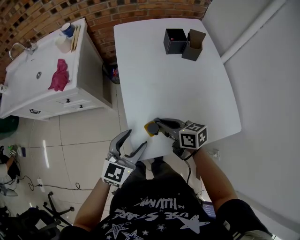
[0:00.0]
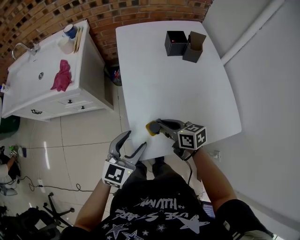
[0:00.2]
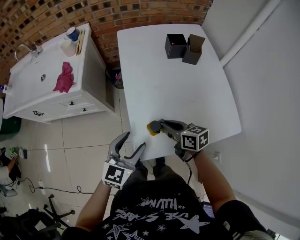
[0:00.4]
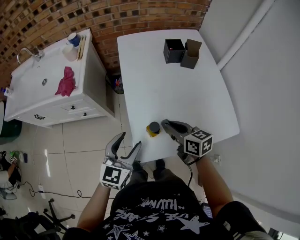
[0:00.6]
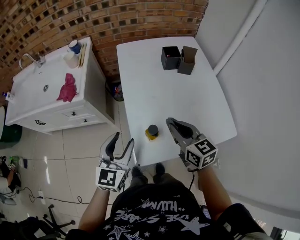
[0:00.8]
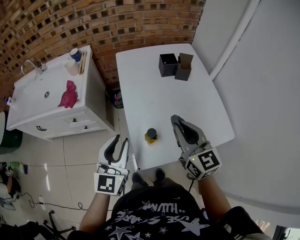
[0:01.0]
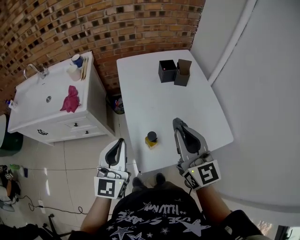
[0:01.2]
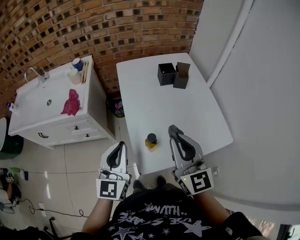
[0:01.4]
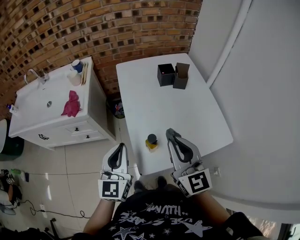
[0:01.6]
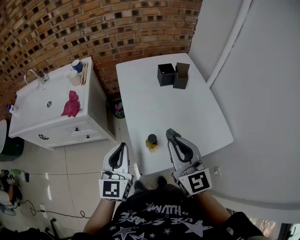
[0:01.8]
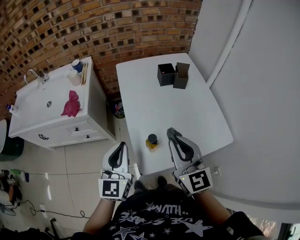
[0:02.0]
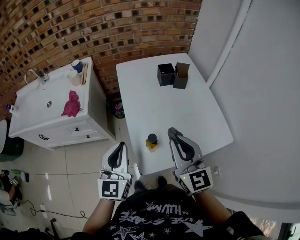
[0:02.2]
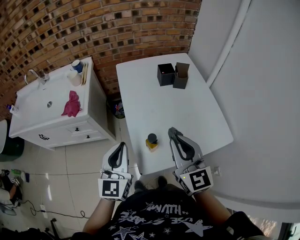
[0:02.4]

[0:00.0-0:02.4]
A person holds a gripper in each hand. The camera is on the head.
0:00.0 to 0:01.2: The left gripper goes about 15 cm upward, swivels approximately 30 degrees, and closes its fingers; the right gripper heads upward, covering about 25 cm, and rotates roughly 60 degrees.
0:01.2 to 0:02.4: There are only small adjustments of the grippers.

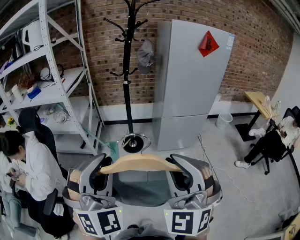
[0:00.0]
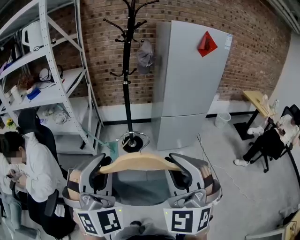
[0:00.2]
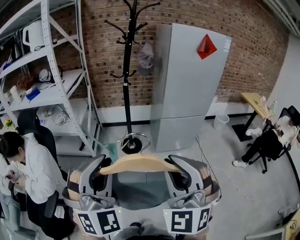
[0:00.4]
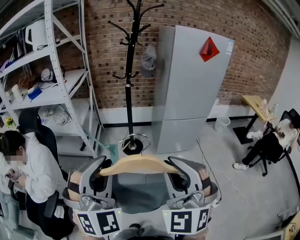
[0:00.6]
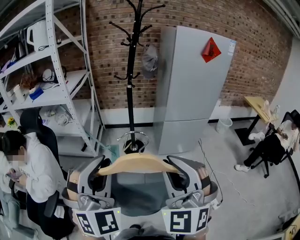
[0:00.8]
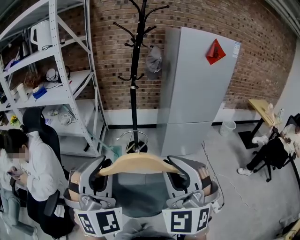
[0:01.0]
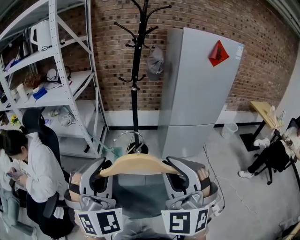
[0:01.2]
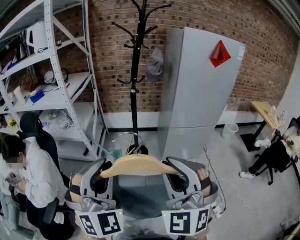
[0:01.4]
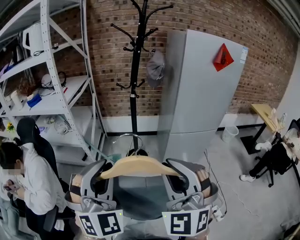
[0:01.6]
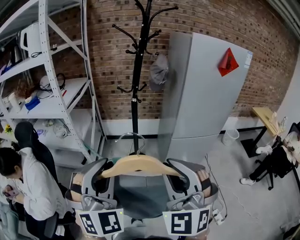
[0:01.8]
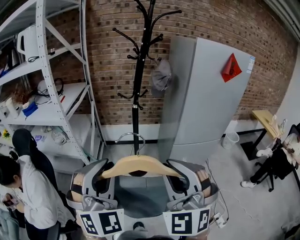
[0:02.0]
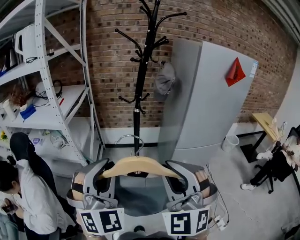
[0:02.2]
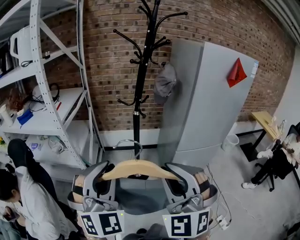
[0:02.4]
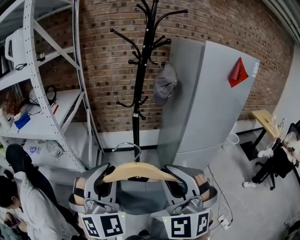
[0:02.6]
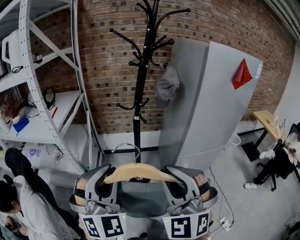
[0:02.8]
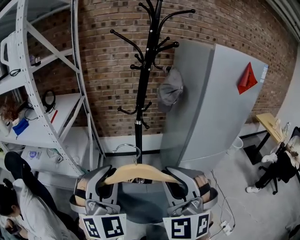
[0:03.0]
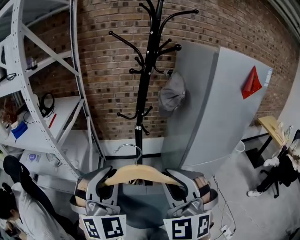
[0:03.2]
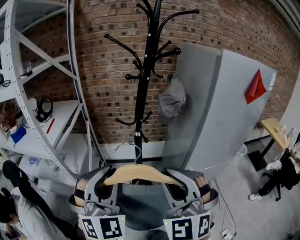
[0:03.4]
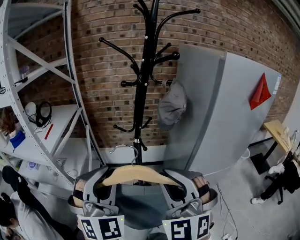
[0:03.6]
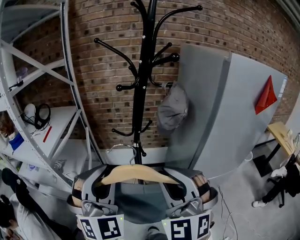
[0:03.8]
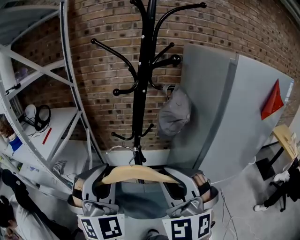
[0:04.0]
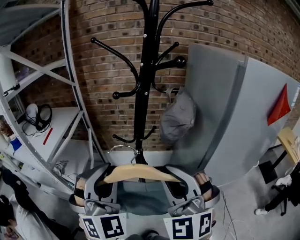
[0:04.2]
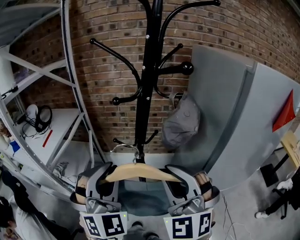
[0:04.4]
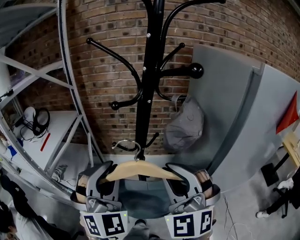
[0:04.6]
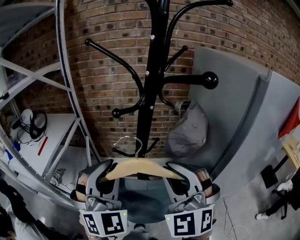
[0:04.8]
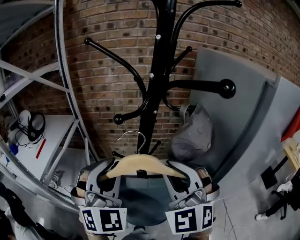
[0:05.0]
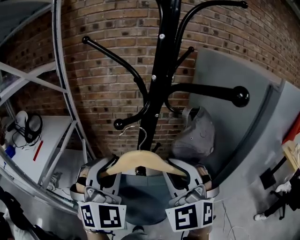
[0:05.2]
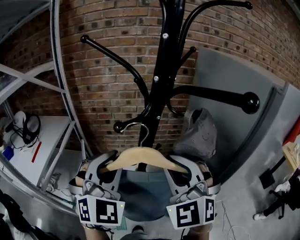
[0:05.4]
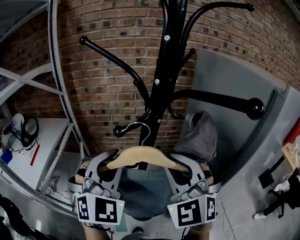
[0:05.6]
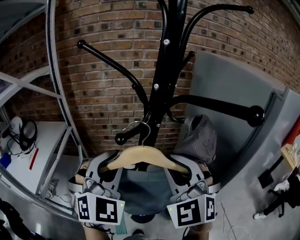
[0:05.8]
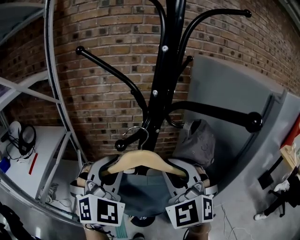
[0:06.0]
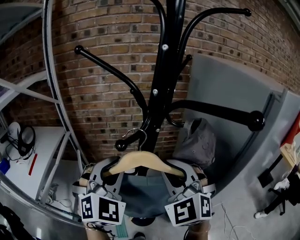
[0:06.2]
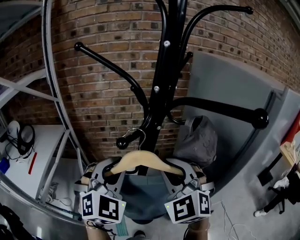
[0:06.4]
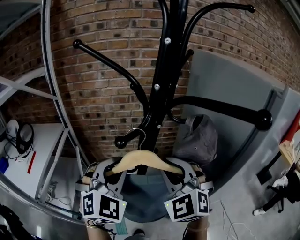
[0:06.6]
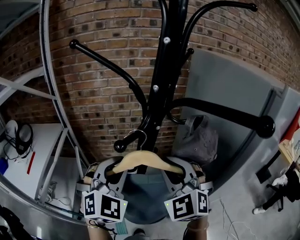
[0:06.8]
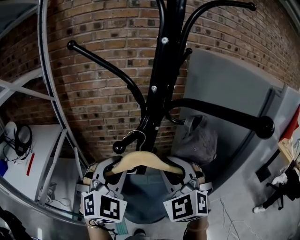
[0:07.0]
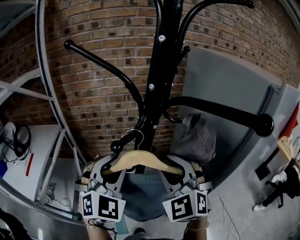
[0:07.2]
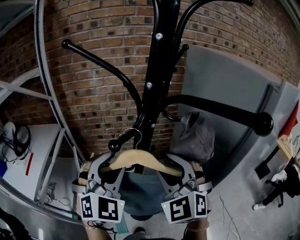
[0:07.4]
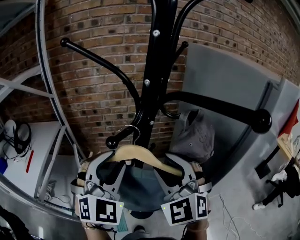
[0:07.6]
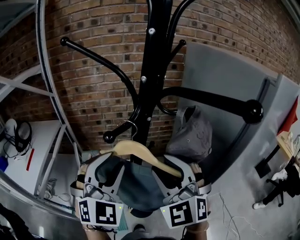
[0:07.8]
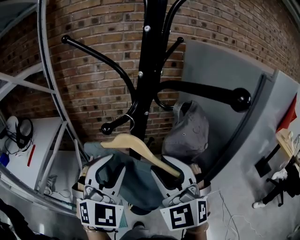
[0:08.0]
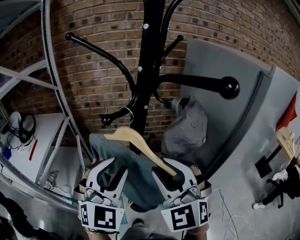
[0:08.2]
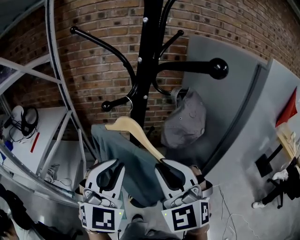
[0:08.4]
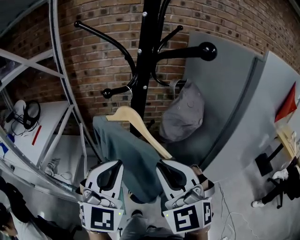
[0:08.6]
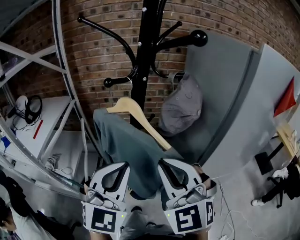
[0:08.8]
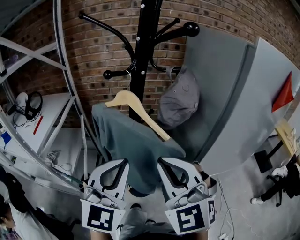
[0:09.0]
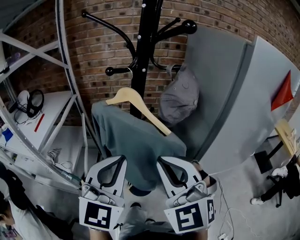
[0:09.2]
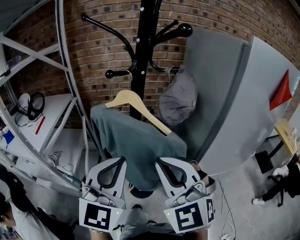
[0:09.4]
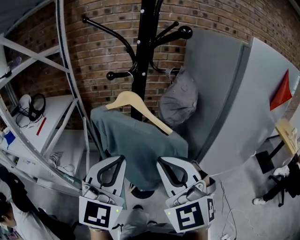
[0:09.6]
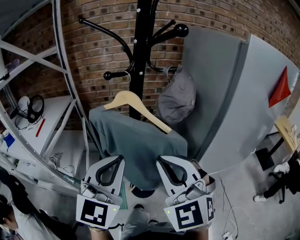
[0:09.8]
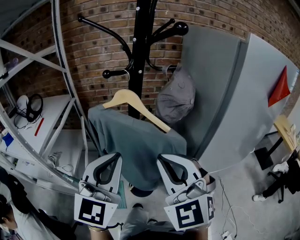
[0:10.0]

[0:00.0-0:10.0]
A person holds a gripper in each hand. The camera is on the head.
0:00.0 to 0:01.4: The two grippers go approximately 5 cm forward.
0:01.4 to 0:02.8: The grippers both shift forward by roughly 25 cm.
0:02.8 to 0:04.2: The grippers both shift forward by some 25 cm.
0:04.2 to 0:05.8: The grippers both shift forward by roughly 20 cm.
0:05.8 to 0:07.2: The grippers stay close to where they were, moving slightly.
0:07.2 to 0:08.6: Both grippers travel together backward, approximately 15 cm. The left gripper closes up.
0:08.6 to 0:10.0: The left gripper swivels some 20 degrees; the right gripper moves backward, about 5 cm.

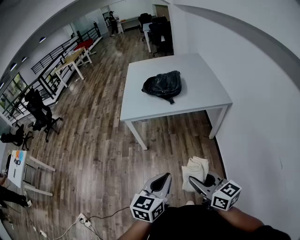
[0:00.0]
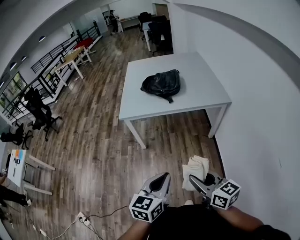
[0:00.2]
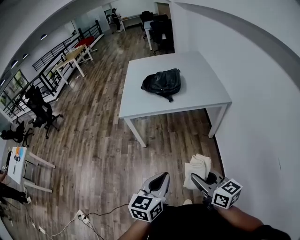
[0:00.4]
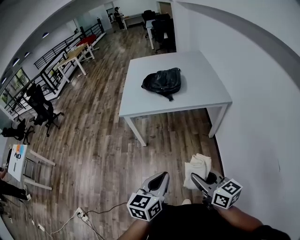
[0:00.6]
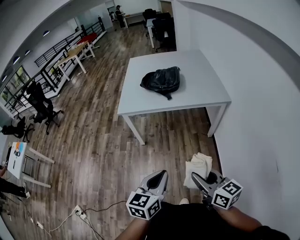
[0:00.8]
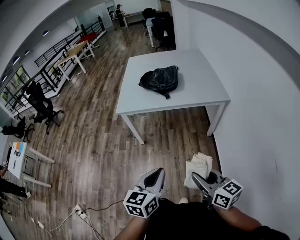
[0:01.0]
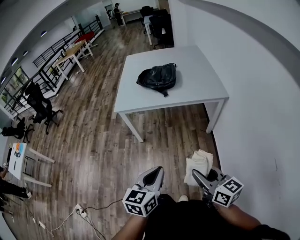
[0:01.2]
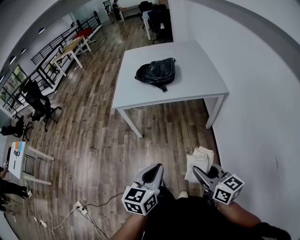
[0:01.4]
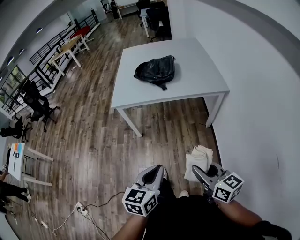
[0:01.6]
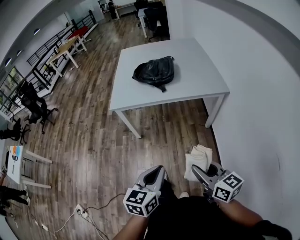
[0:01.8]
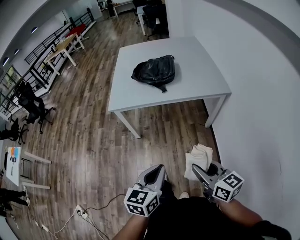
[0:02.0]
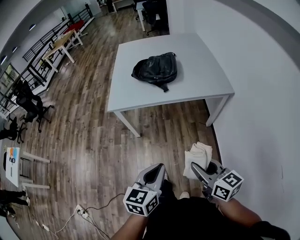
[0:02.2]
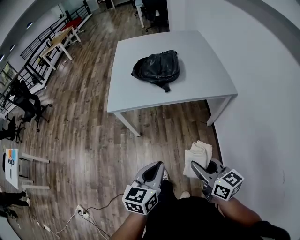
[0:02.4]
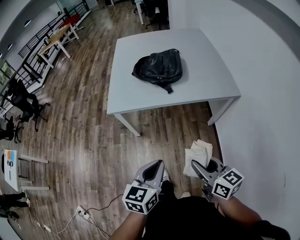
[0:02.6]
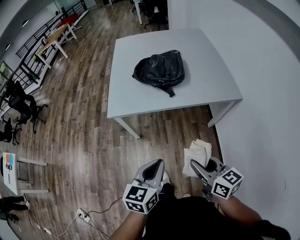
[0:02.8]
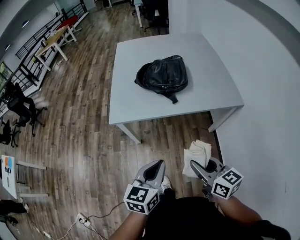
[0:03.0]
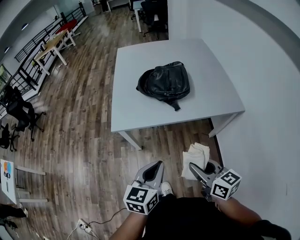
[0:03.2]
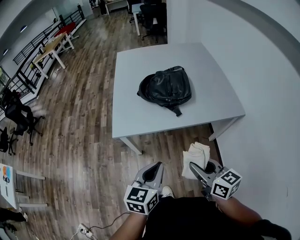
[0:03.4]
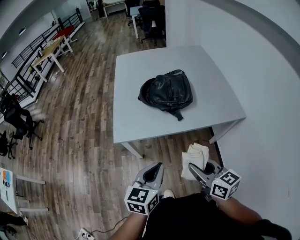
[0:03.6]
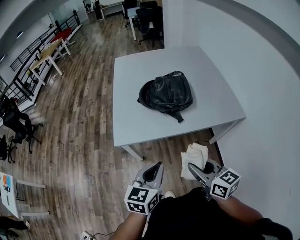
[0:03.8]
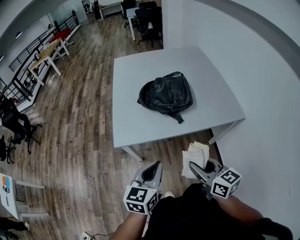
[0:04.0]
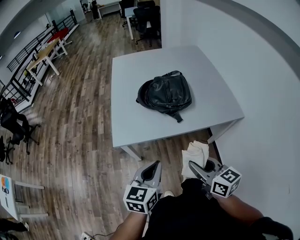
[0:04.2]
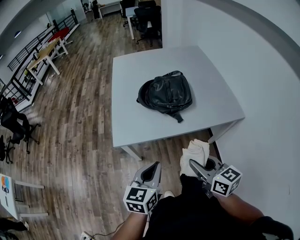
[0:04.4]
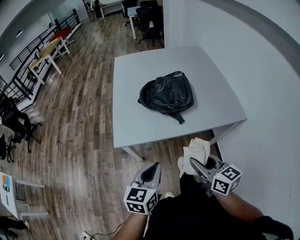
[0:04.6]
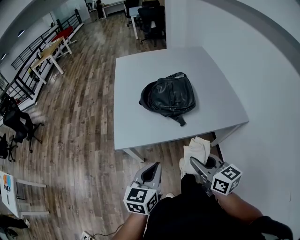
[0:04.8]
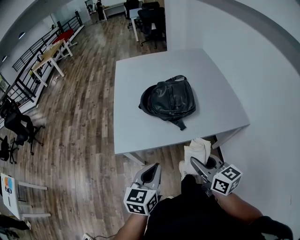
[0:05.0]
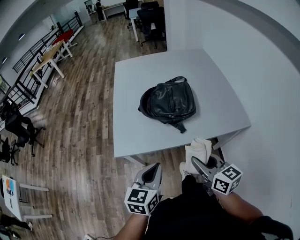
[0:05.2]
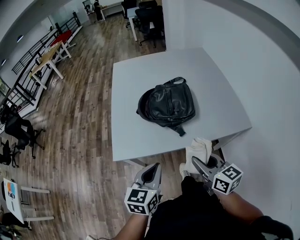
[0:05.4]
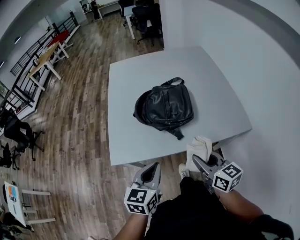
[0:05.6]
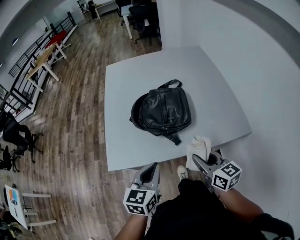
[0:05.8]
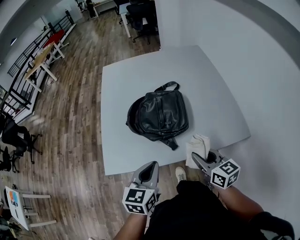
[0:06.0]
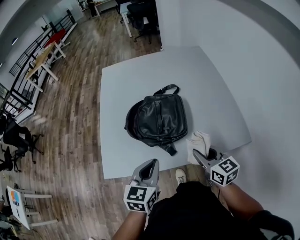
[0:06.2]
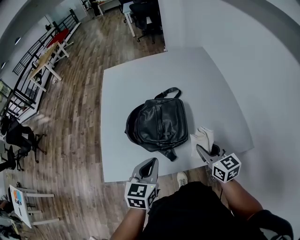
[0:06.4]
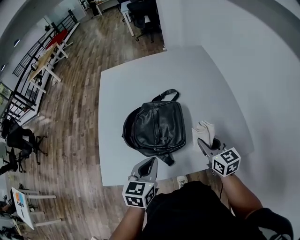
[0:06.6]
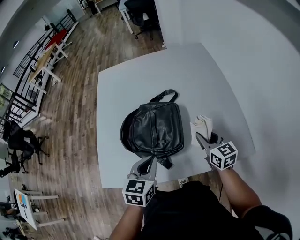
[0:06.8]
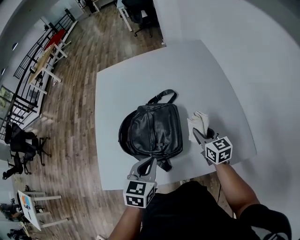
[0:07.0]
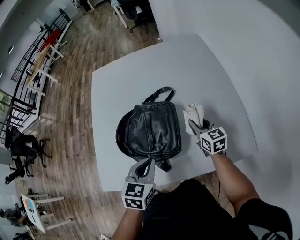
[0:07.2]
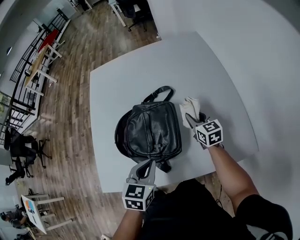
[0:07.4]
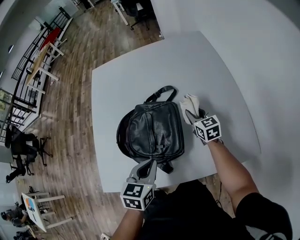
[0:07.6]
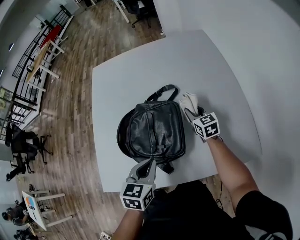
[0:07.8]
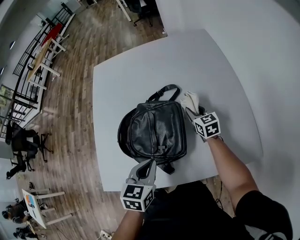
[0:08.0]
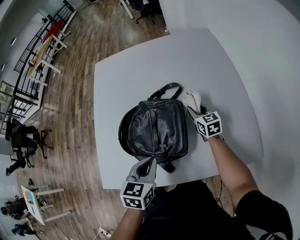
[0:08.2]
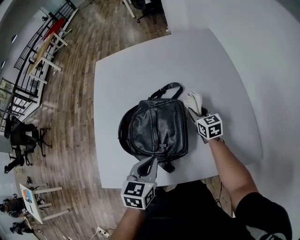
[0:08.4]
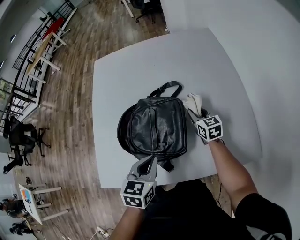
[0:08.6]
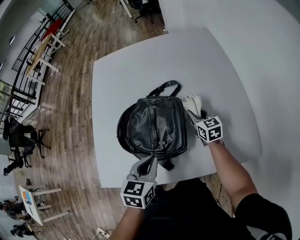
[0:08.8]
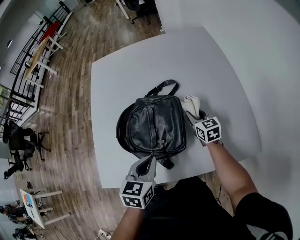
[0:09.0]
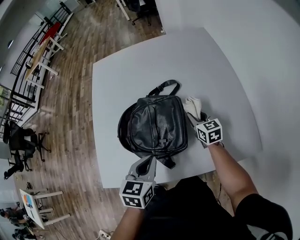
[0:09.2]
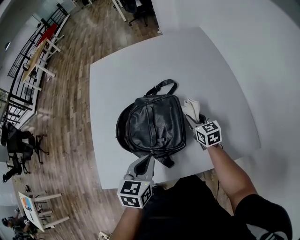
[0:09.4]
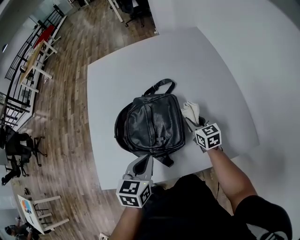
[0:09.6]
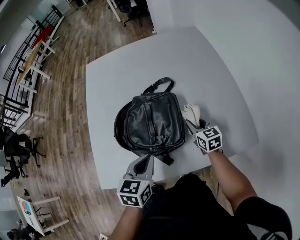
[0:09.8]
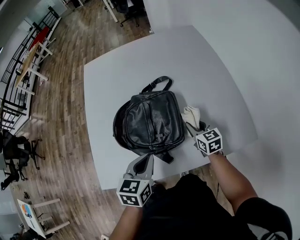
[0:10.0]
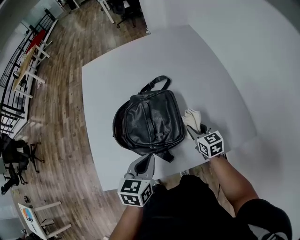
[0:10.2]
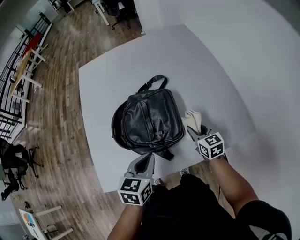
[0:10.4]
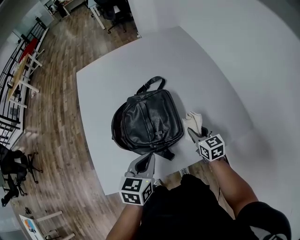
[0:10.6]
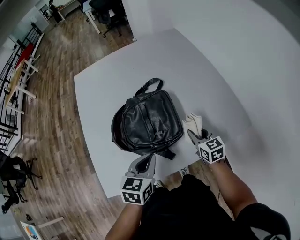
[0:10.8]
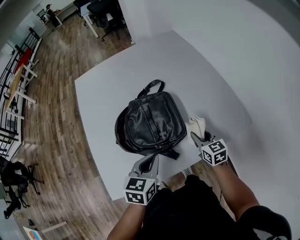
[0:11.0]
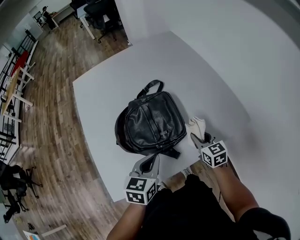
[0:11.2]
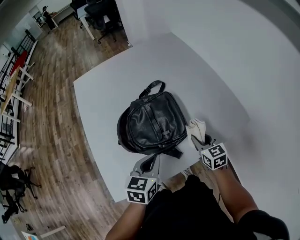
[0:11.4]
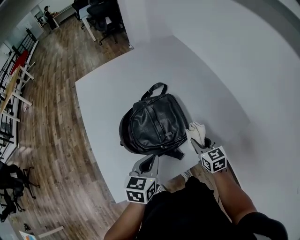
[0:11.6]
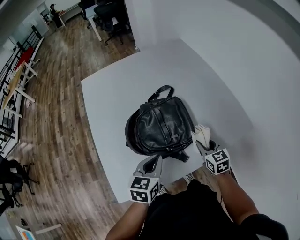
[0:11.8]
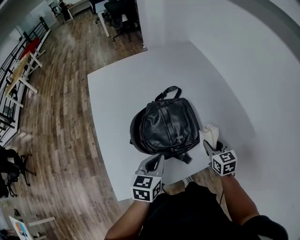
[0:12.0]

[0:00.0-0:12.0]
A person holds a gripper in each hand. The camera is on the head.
0:00.0 to 0:01.6: The right gripper travels to the right by roughly 10 cm.
0:01.6 to 0:03.0: The two grippers go roughly 25 cm forward.
0:03.0 to 0:04.4: The two grippers go roughly 10 cm forward and to the left.
0:04.4 to 0:06.0: The two grippers go about 25 cm forward and to the right.
0:06.0 to 0:07.6: The left gripper is displaced forward, to the right and downward by approximately 20 cm, while the right gripper moves forward, about 35 cm.
0:07.6 to 0:09.0: There are only small adjustments of the grippers.
0:09.0 to 0:10.4: The right gripper moves backward, about 15 cm.
0:10.4 to 0:12.0: The right gripper travels upward and backward by approximately 10 cm. Meanwhile the left gripper goes roughly 5 cm to the left.
